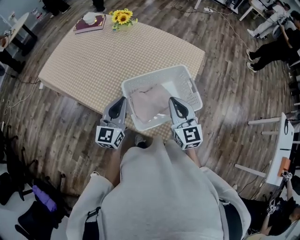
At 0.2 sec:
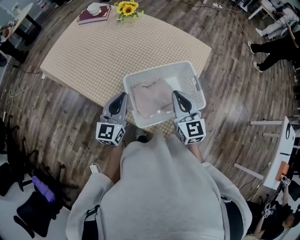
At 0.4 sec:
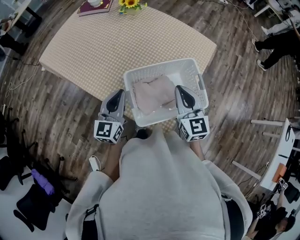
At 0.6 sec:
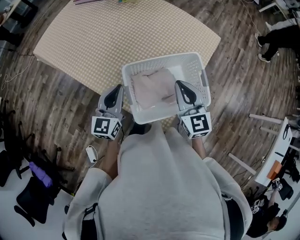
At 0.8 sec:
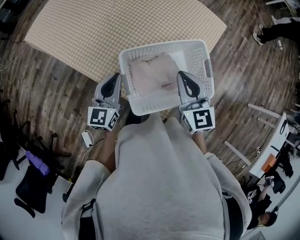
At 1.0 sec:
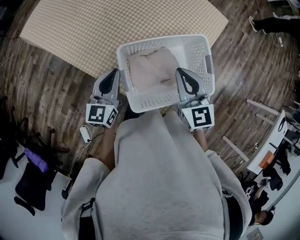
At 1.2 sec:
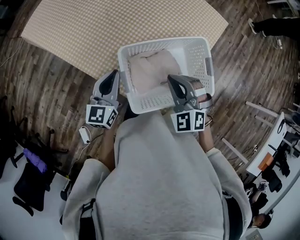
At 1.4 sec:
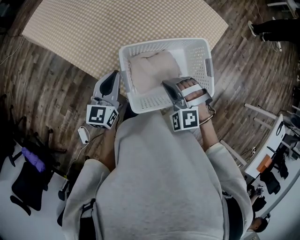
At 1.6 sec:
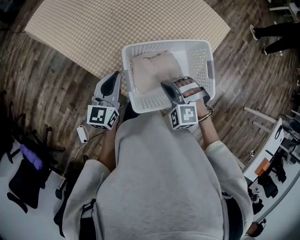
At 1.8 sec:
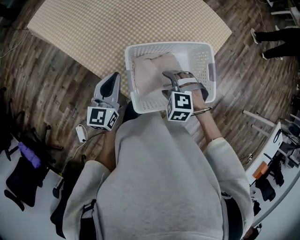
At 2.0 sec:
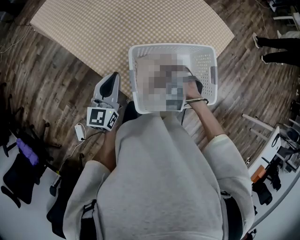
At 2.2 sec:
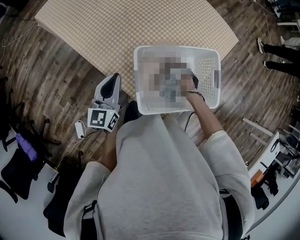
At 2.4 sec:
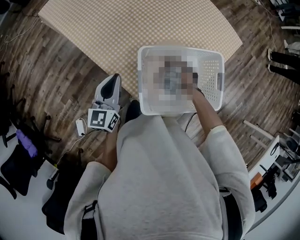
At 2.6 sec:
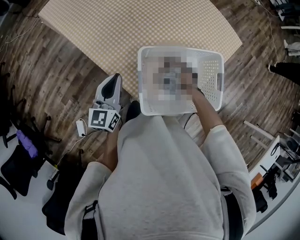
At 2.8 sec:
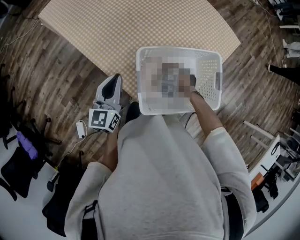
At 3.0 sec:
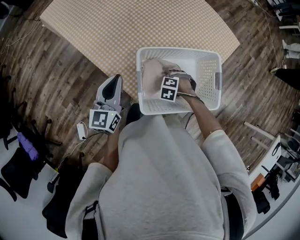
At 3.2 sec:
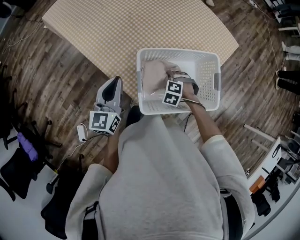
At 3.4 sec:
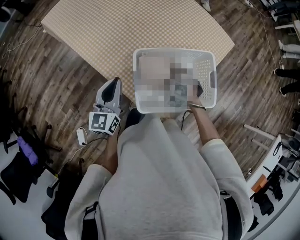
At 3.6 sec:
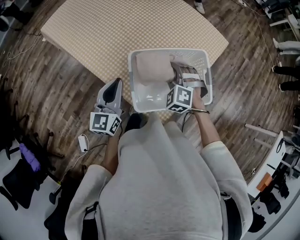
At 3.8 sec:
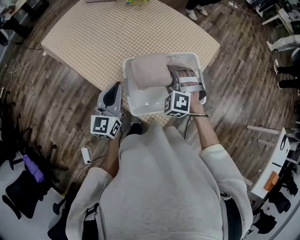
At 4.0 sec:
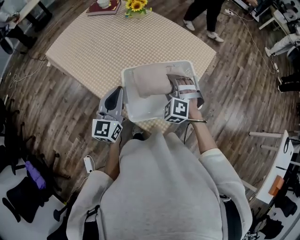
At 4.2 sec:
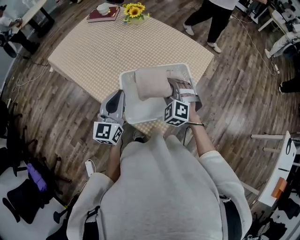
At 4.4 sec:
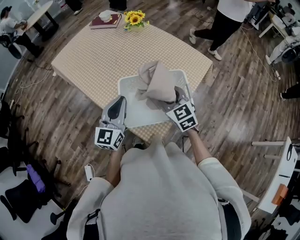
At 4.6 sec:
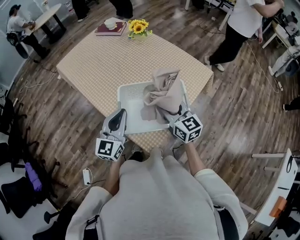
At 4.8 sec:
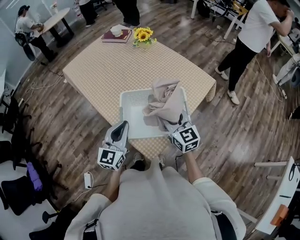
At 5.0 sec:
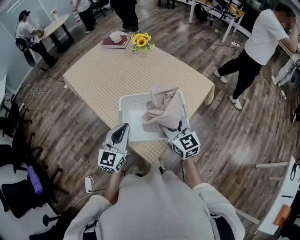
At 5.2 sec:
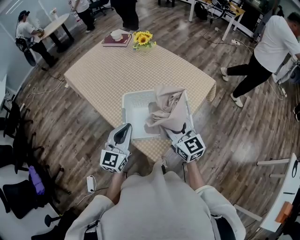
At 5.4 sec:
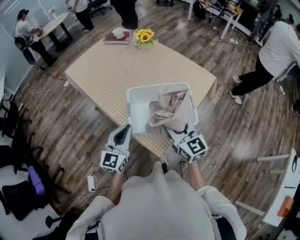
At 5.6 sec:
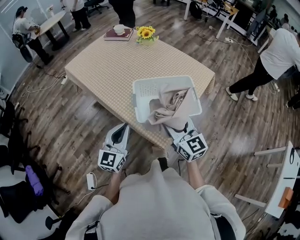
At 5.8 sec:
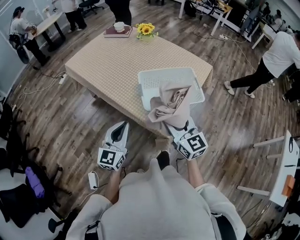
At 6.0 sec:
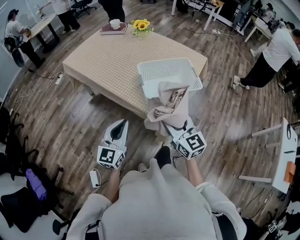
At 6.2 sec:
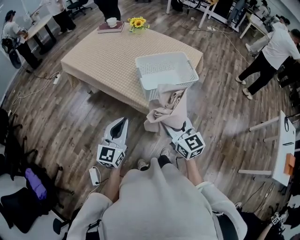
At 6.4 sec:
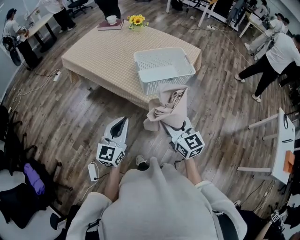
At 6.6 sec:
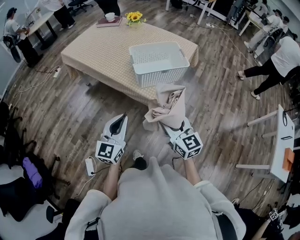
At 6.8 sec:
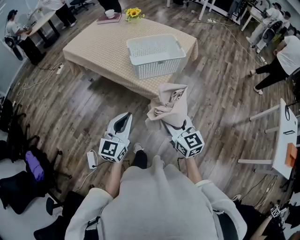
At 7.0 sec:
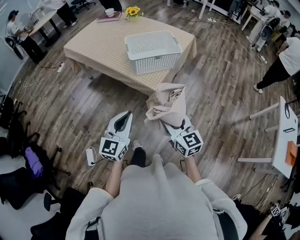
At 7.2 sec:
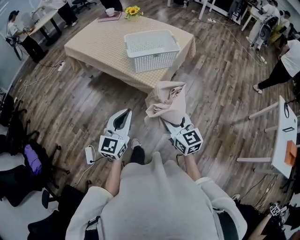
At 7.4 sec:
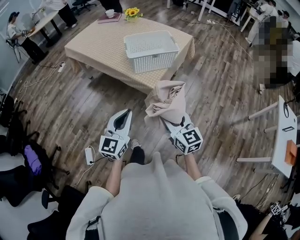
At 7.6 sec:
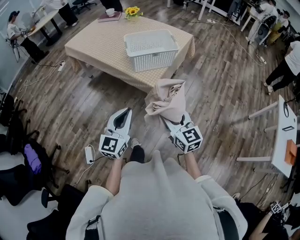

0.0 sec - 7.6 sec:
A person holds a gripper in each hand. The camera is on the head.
0.0 sec - 1.6 sec: The left gripper moves downward, some 10 cm. Meanwhile the right gripper is displaced downward by about 15 cm, and points its fingers some 40 degrees further downward.
1.6 sec - 3.0 sec: The right gripper goes some 15 cm downward, tilts its fingers about 30 degrees downward, and opens, then closes again.
3.0 sec - 4.6 sec: The right gripper is displaced upward by about 30 cm, and angles its fingers upward, by approximately 80 degrees. Meanwhile the left gripper moves roughly 20 cm.
4.6 sec - 6.0 sec: Both grippers move backward and to the left, about 30 cm.
6.0 sec - 7.6 sec: Both grippers travel together backward and to the right, about 30 cm.

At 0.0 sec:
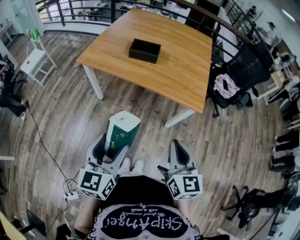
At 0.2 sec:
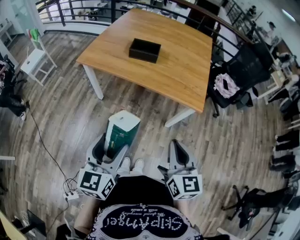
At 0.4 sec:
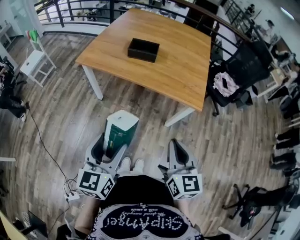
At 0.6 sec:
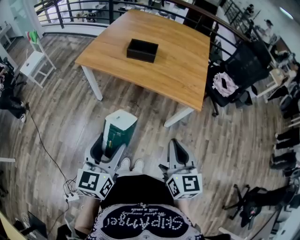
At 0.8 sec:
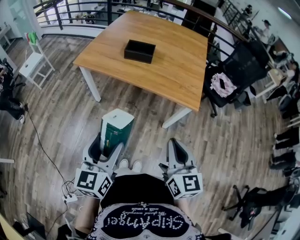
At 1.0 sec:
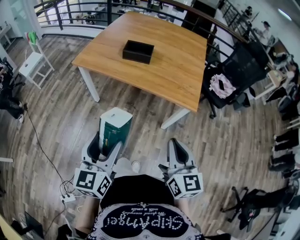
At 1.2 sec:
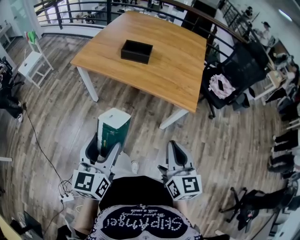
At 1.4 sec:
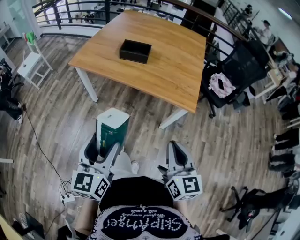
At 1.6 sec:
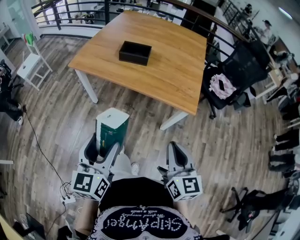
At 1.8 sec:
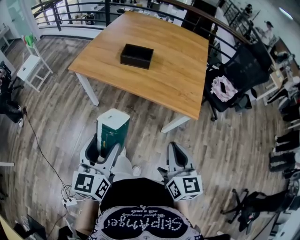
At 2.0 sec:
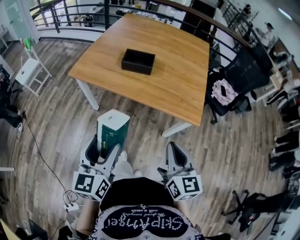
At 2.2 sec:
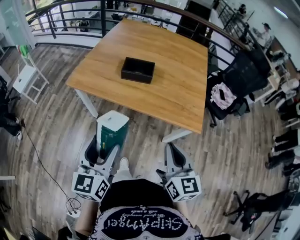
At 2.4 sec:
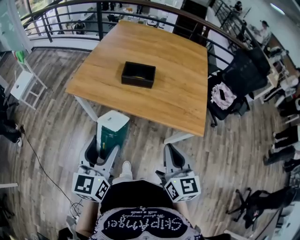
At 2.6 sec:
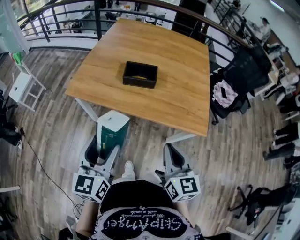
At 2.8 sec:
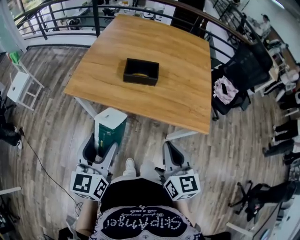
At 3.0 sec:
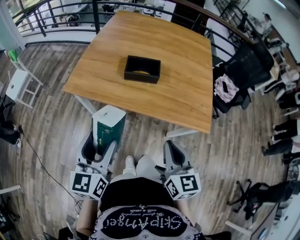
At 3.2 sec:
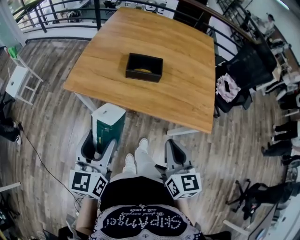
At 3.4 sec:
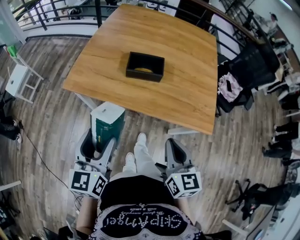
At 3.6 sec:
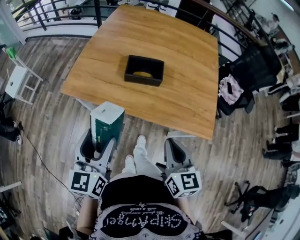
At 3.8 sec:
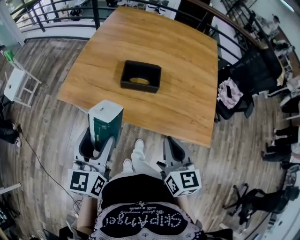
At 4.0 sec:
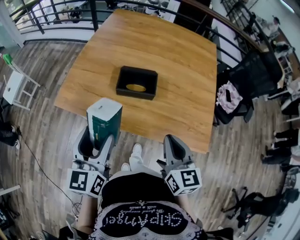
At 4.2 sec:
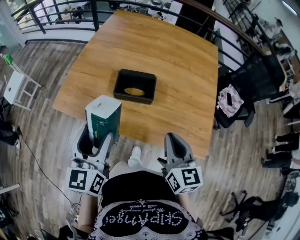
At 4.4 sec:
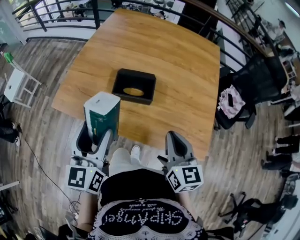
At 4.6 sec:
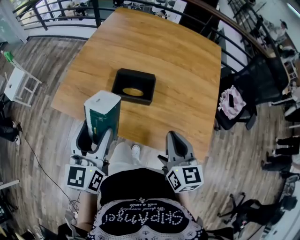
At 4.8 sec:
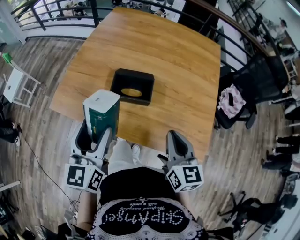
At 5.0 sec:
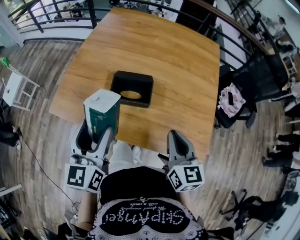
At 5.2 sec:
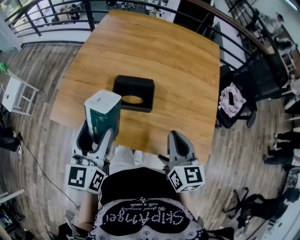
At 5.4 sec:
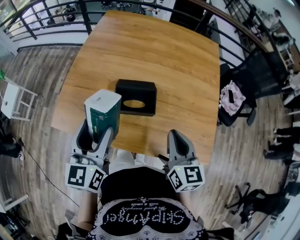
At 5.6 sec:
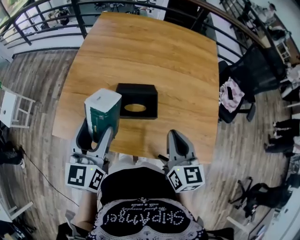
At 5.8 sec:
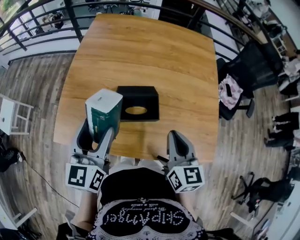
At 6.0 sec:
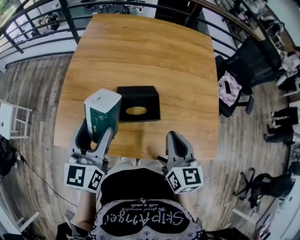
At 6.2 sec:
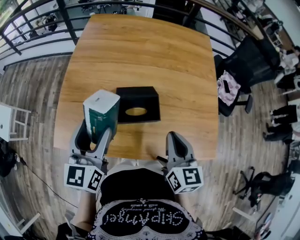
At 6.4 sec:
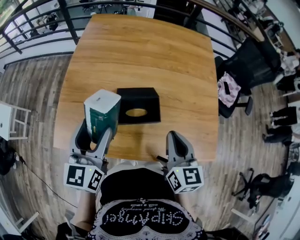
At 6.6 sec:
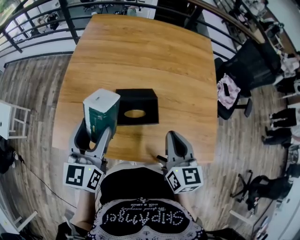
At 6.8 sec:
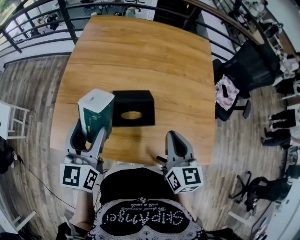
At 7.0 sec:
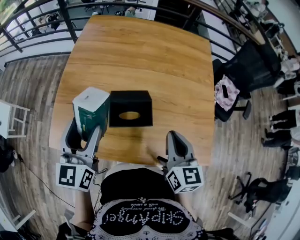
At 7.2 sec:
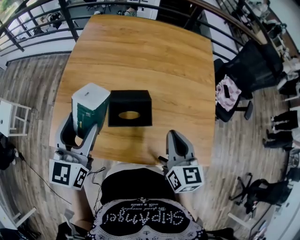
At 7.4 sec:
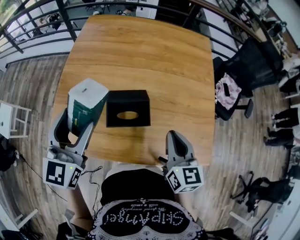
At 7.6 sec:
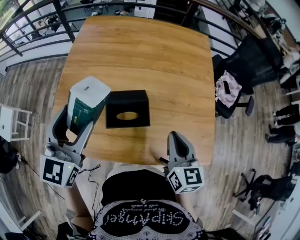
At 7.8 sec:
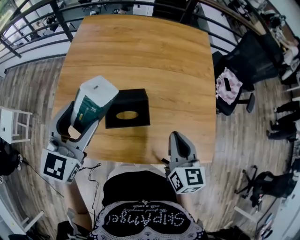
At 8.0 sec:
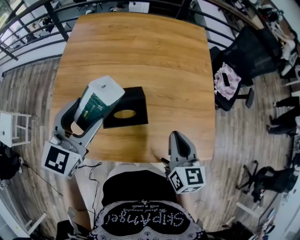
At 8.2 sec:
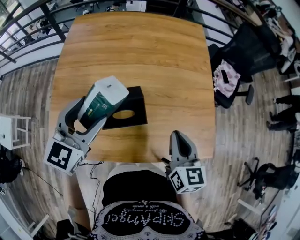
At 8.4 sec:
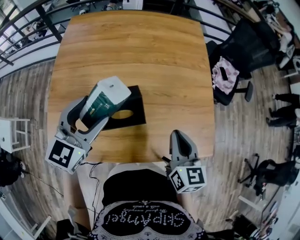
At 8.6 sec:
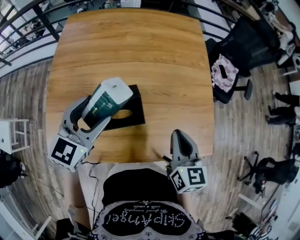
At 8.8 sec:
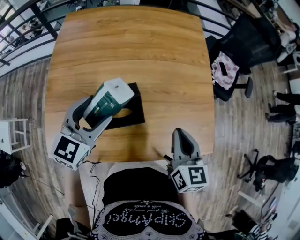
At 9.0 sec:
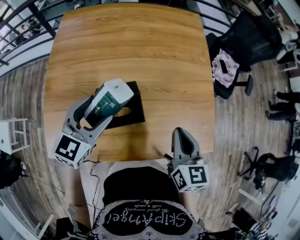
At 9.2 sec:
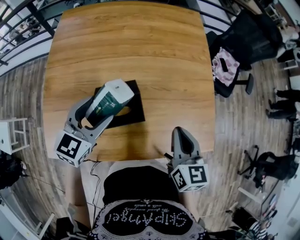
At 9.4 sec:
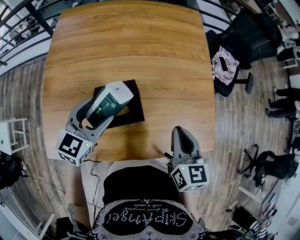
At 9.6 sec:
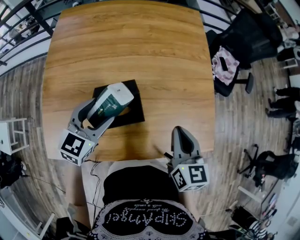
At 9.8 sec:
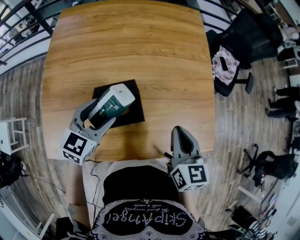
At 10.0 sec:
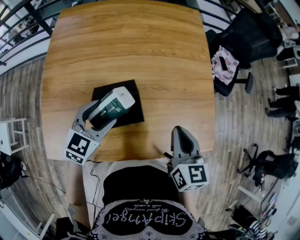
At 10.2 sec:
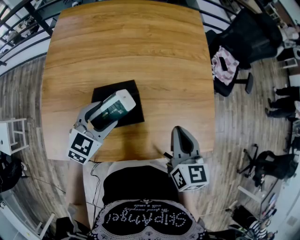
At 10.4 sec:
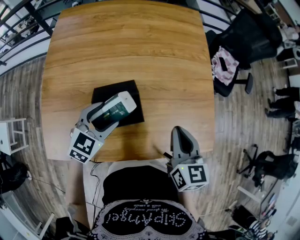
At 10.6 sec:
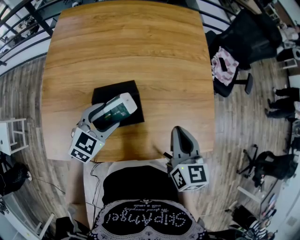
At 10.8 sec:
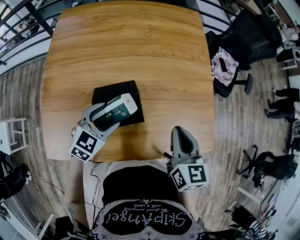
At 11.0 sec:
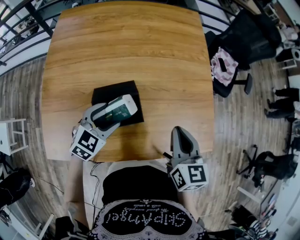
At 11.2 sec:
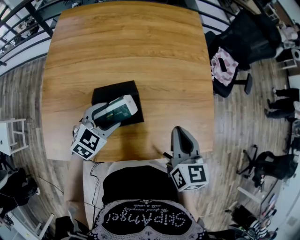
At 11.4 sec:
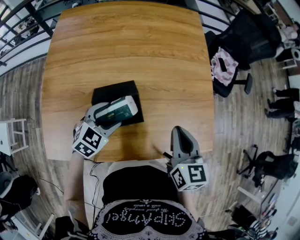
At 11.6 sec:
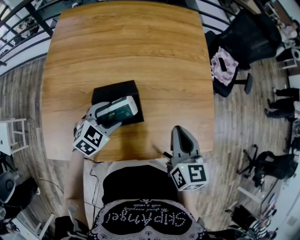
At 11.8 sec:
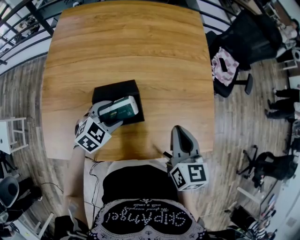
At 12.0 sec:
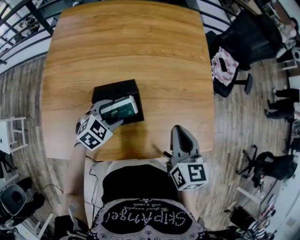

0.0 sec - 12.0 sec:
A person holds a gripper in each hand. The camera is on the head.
0.0 sec - 1.6 sec: There are only small adjustments of the grippers.
1.6 sec - 3.0 sec: The grippers both shift forward and to the left by roughly 25 cm.
3.0 sec - 4.4 sec: The grippers both shift forward by about 20 cm.
4.4 sec - 6.0 sec: The right gripper heads forward and to the left, covering about 10 cm; the left gripper heads forward, covering about 15 cm.
6.0 sec - 7.6 sec: The right gripper goes some 5 cm to the right; the left gripper moves upward, some 5 cm, and swivels about 20 degrees.
7.6 sec - 9.0 sec: The left gripper goes approximately 15 cm downward, forward and to the right, and swivels about 20 degrees.
9.0 sec - 10.4 sec: The left gripper shifts approximately 10 cm downward.
10.4 sec - 12.0 sec: The left gripper heads downward, covering roughly 5 cm.

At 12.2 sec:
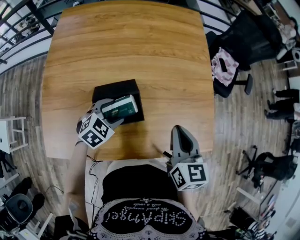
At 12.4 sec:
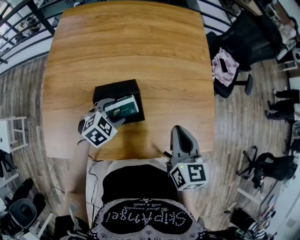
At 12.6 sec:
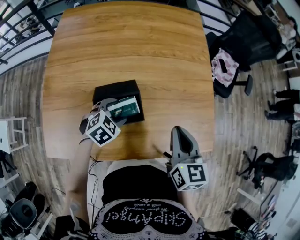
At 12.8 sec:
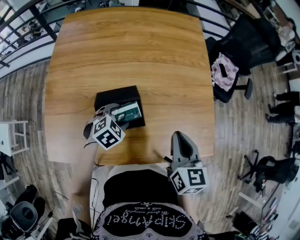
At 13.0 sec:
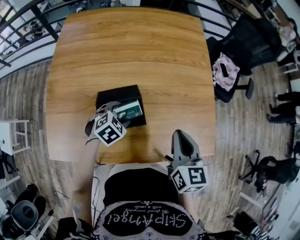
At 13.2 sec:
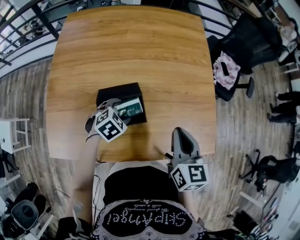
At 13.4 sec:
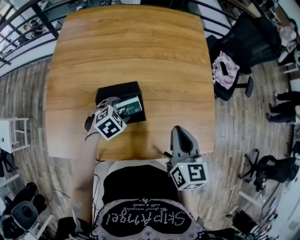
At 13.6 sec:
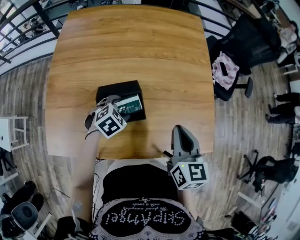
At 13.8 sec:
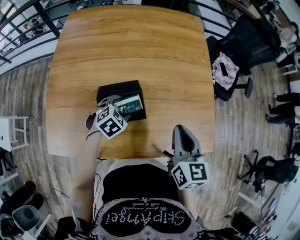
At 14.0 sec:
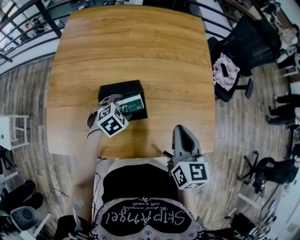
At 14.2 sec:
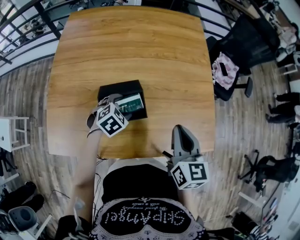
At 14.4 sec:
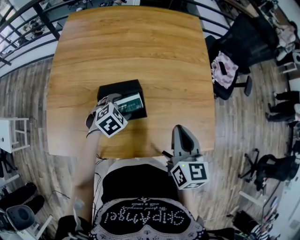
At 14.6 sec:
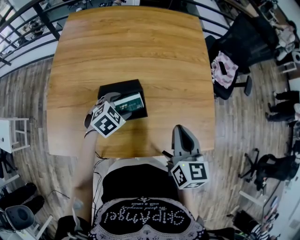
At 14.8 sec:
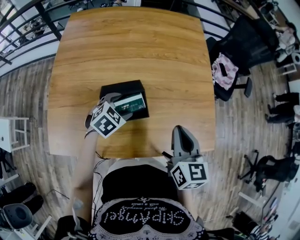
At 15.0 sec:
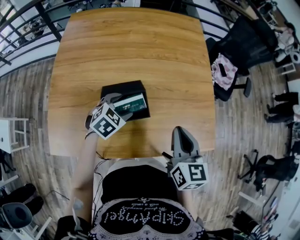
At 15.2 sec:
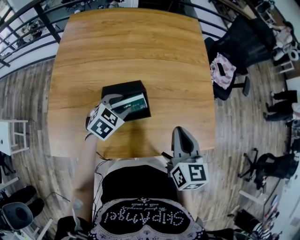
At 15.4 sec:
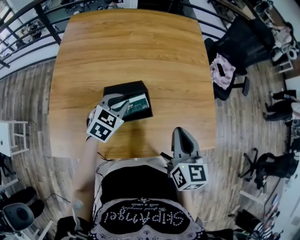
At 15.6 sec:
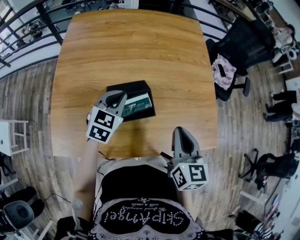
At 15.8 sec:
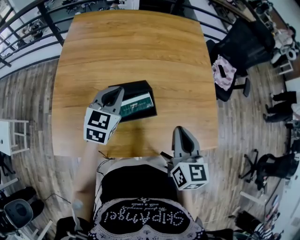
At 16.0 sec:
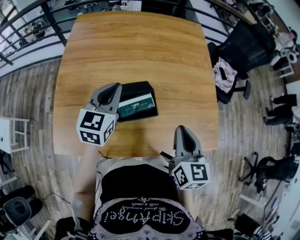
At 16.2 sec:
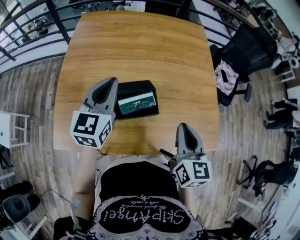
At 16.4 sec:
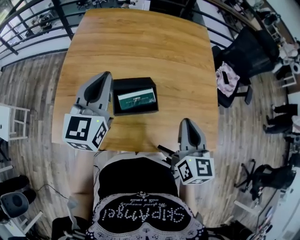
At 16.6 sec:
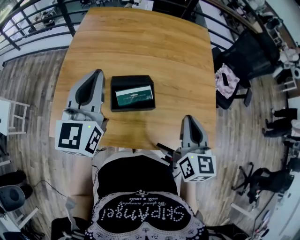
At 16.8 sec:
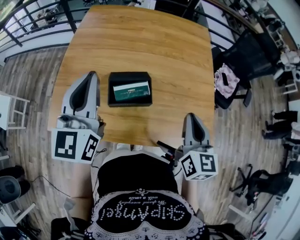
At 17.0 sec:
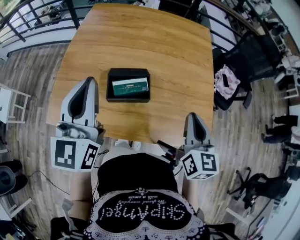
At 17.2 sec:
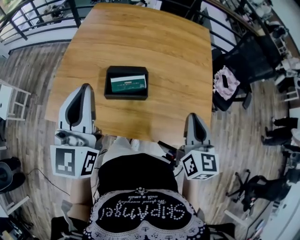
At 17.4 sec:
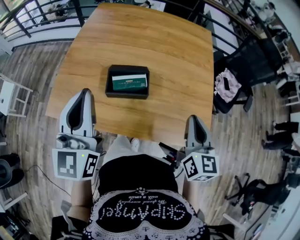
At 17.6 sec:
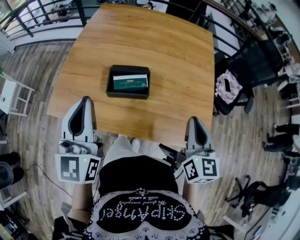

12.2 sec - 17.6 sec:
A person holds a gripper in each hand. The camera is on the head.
12.2 sec - 15.0 sec: The grippers stay close to where they were, moving slightly.
15.0 sec - 16.2 sec: The left gripper heads upward and to the left, covering some 20 cm, angles its fingers upward, by roughly 40 degrees, and closes its fingers.
16.2 sec - 17.6 sec: The left gripper goes roughly 25 cm backward and upward, and changes its angle by approximately 30 degrees. Meanwhile the right gripper is displaced to the right and backward by about 10 cm.
